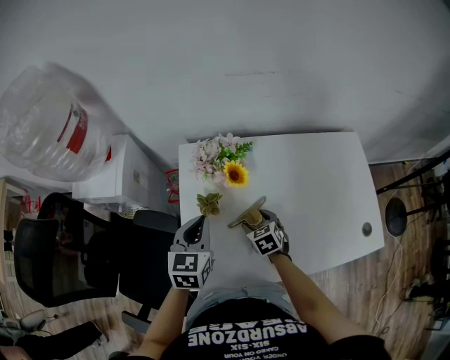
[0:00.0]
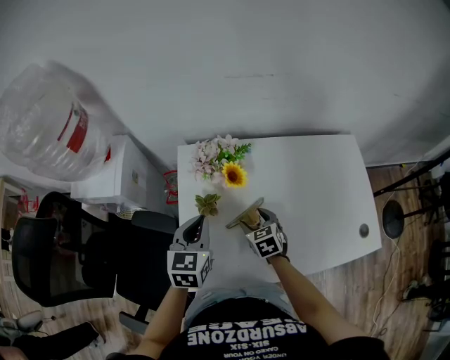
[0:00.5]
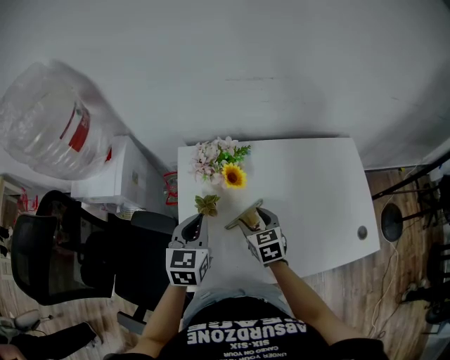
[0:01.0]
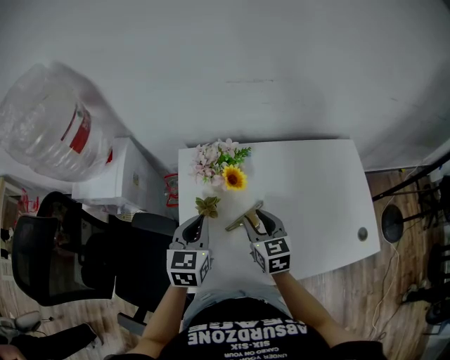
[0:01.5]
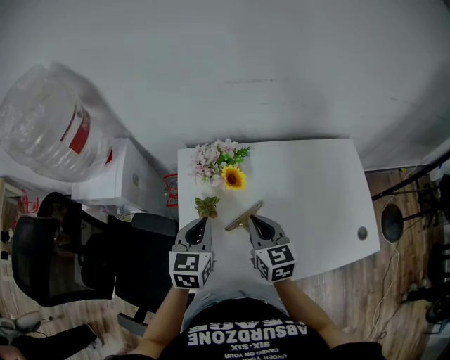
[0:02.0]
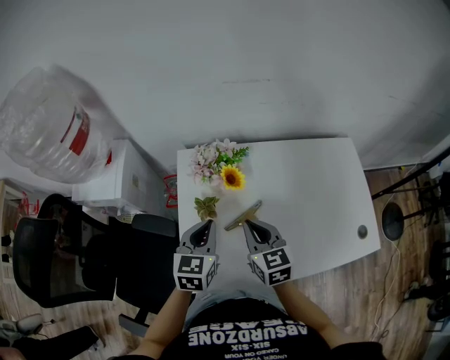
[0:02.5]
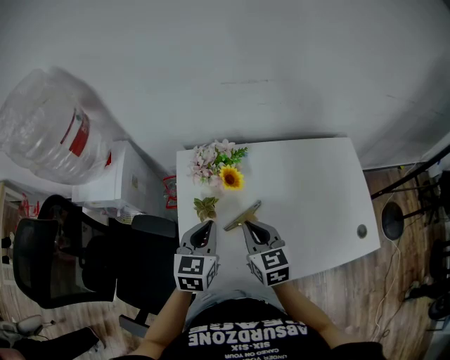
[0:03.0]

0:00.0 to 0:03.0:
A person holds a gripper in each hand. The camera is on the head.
0:00.0 to 0:01.5: The right gripper goes roughly 15 cm upward, rotates about 30 degrees, and closes its fingers.
0:01.5 to 0:03.0: The right gripper closes.

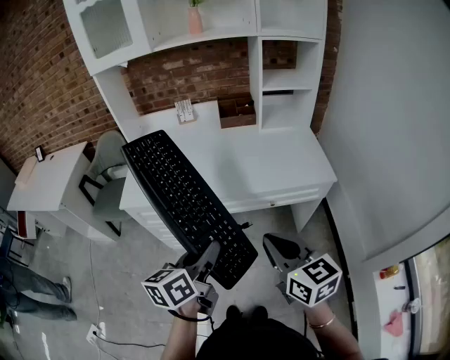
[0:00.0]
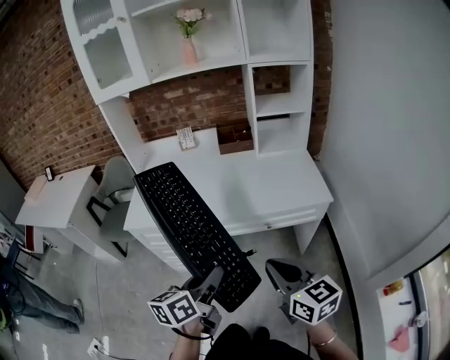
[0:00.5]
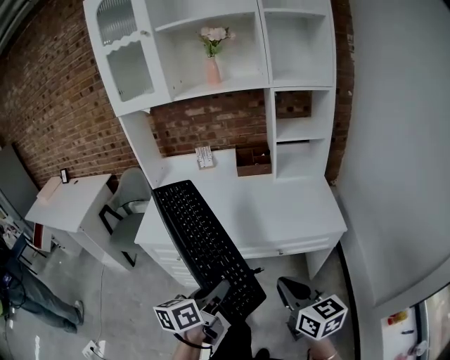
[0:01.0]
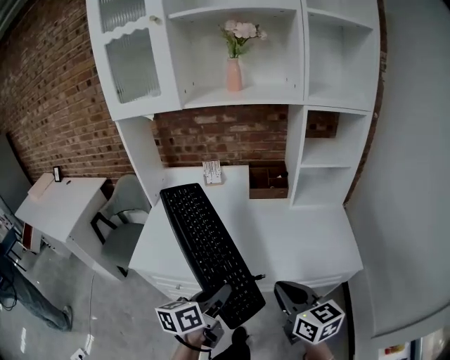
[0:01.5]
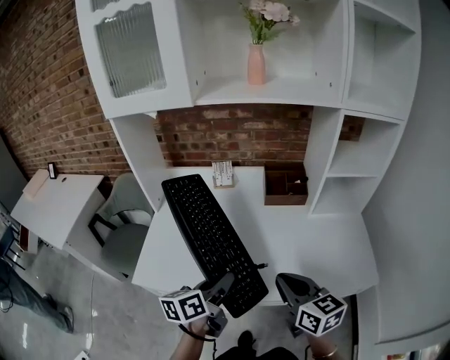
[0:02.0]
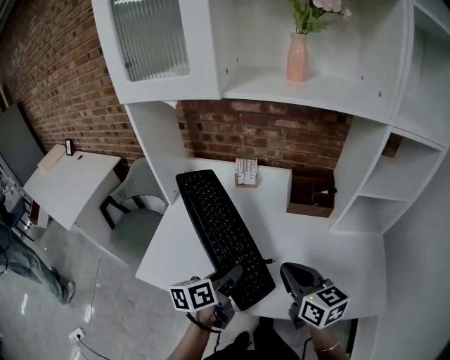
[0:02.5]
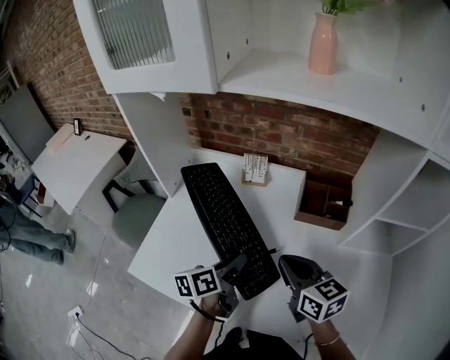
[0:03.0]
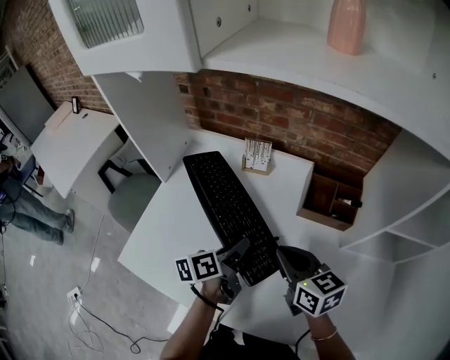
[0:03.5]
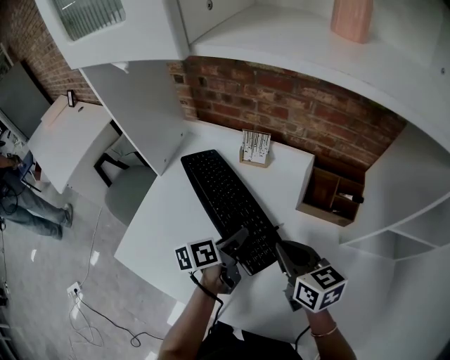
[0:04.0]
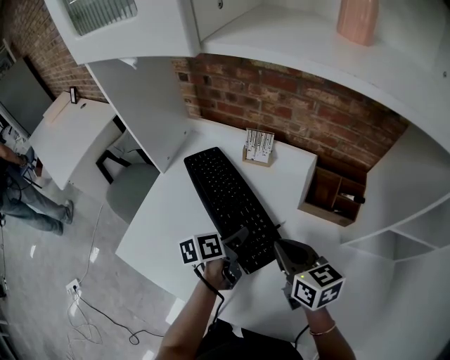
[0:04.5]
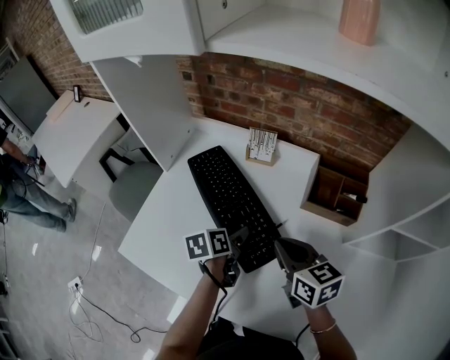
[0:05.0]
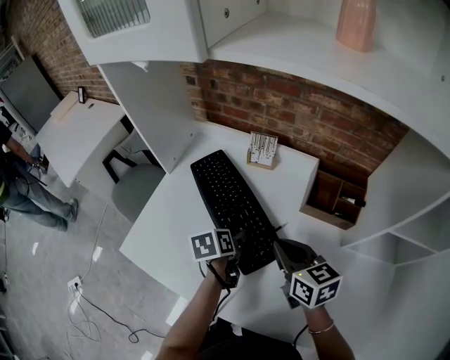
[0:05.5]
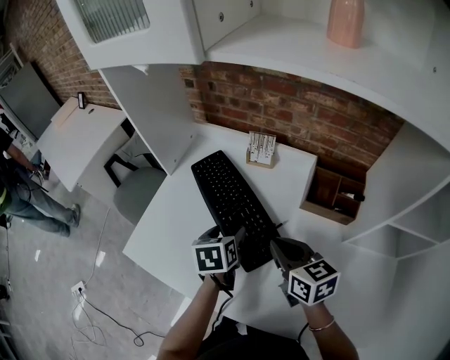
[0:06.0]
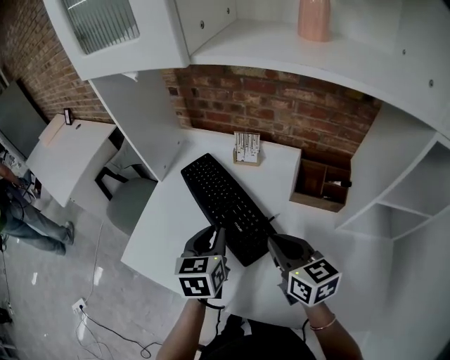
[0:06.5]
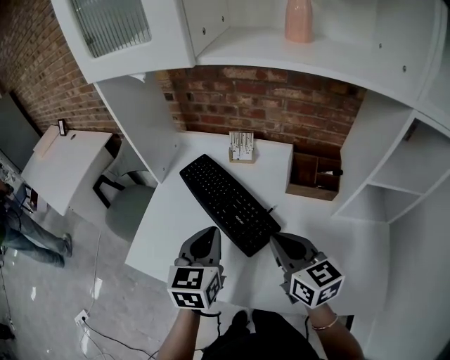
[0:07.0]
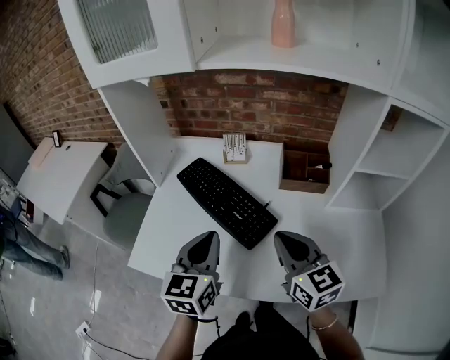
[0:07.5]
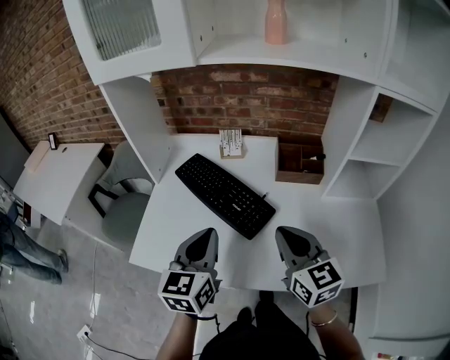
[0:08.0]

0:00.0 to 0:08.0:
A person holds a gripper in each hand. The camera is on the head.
0:00.0 to 0:02.0: Both grippers move forward, some 30 cm.
0:02.0 to 0:04.0: The left gripper moves forward and downward, roughly 25 cm, and rotates some 30 degrees, while the right gripper moves forward, some 25 cm, and changes its angle by some 20 degrees.
0:04.0 to 0:06.0: The left gripper goes approximately 5 cm to the left, changes its angle by about 40 degrees, and opens up.
0:06.0 to 0:08.0: The left gripper travels upward and backward by some 20 cm, angles its fingers upward, by some 30 degrees, and closes up; the right gripper goes roughly 15 cm backward and upward, and rotates some 30 degrees.

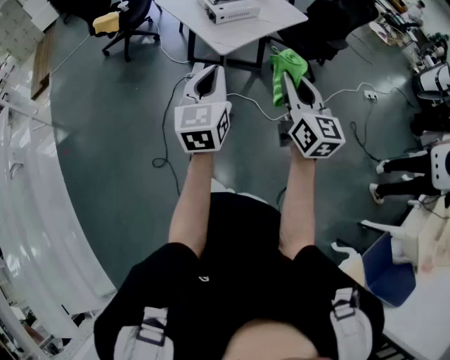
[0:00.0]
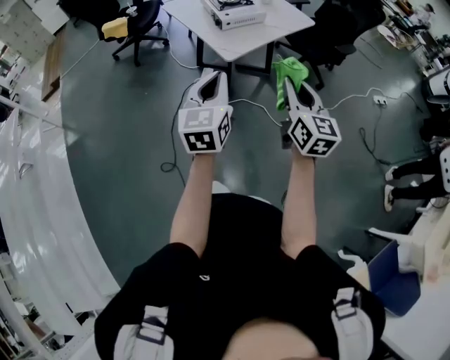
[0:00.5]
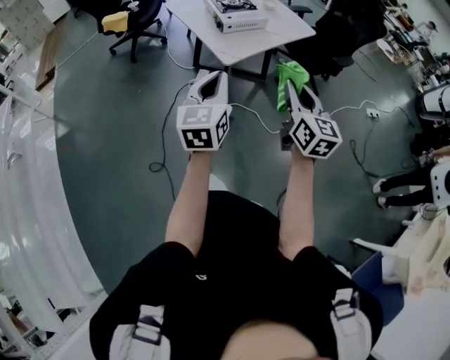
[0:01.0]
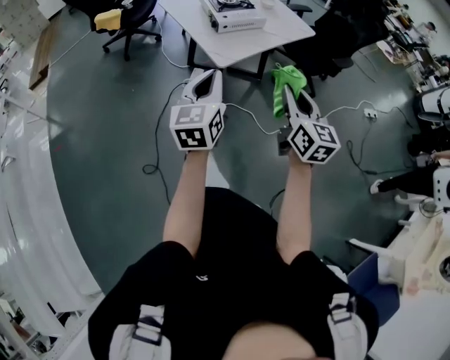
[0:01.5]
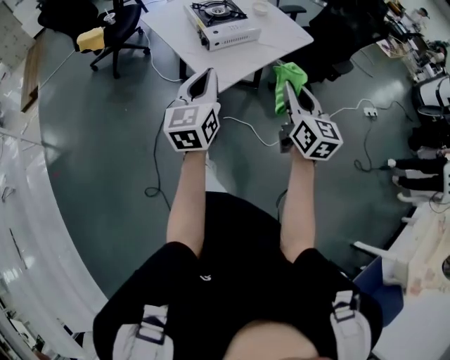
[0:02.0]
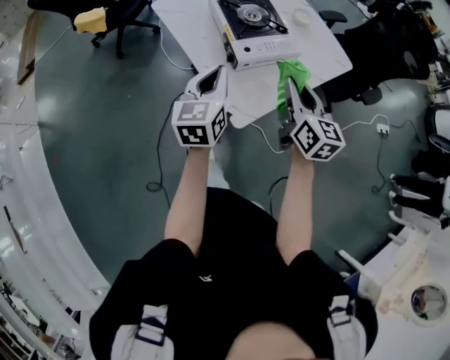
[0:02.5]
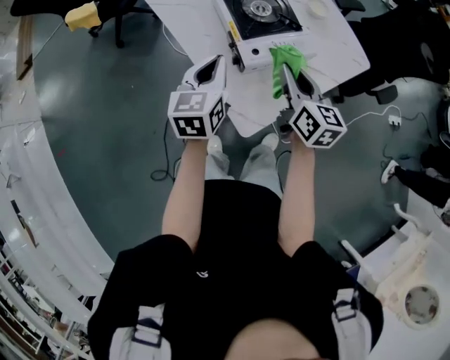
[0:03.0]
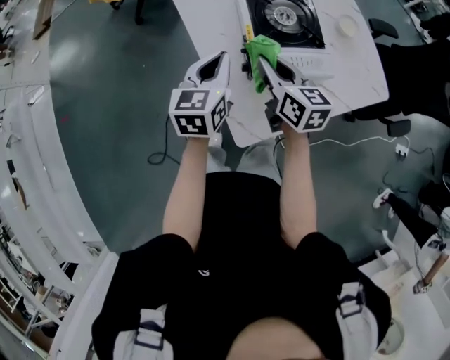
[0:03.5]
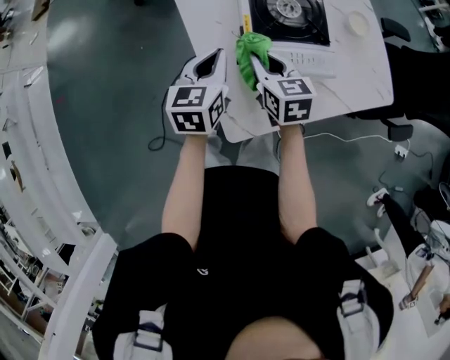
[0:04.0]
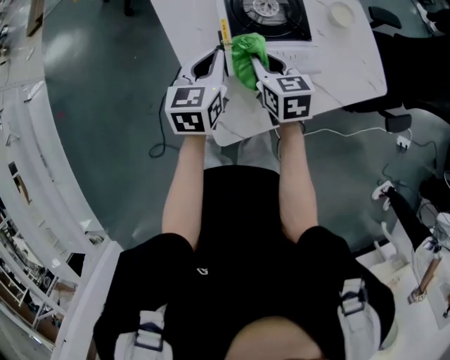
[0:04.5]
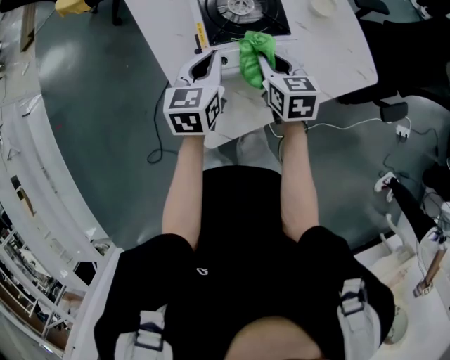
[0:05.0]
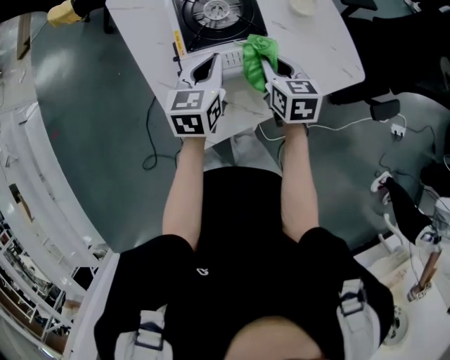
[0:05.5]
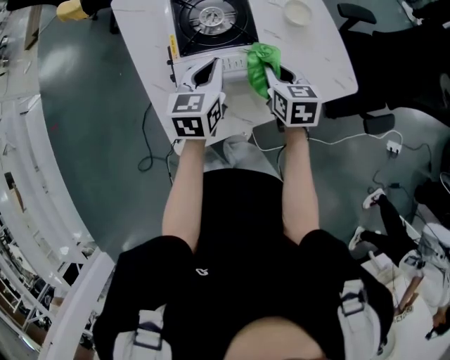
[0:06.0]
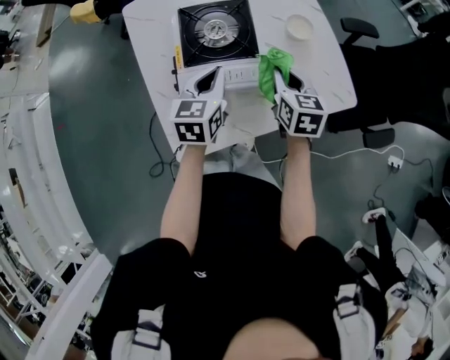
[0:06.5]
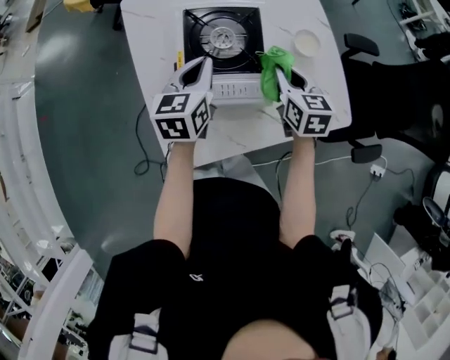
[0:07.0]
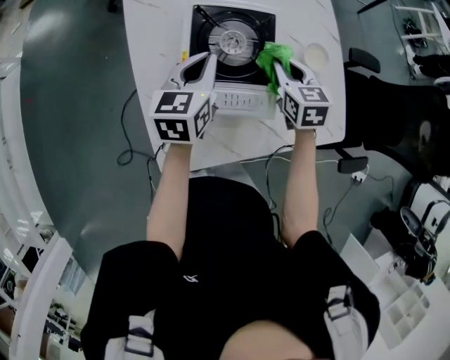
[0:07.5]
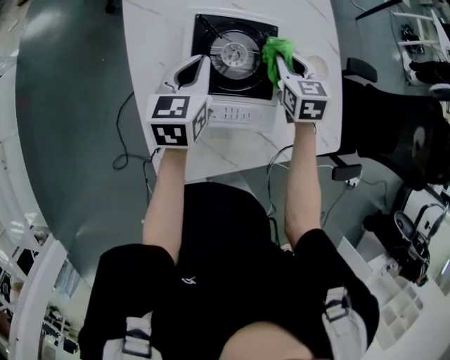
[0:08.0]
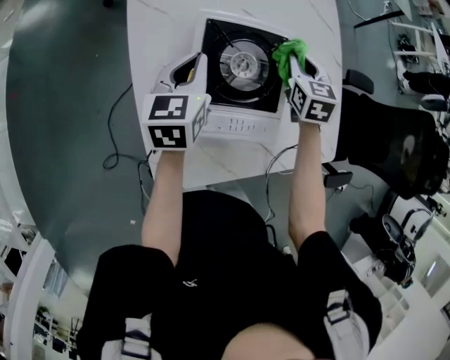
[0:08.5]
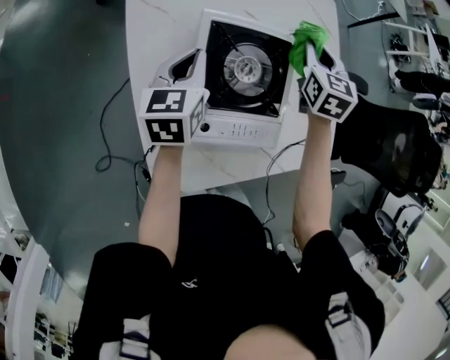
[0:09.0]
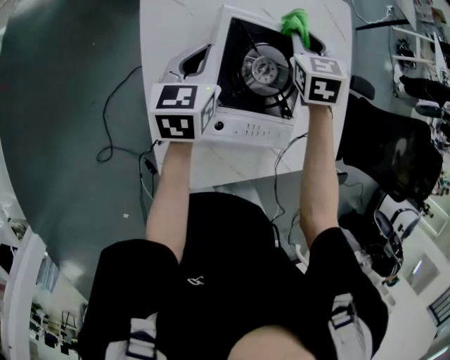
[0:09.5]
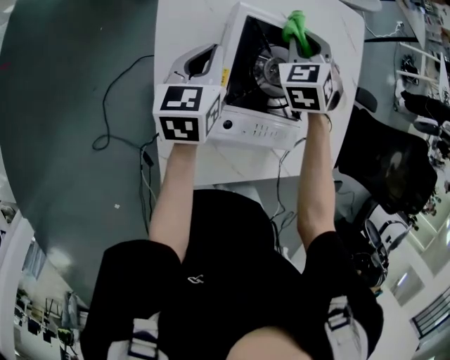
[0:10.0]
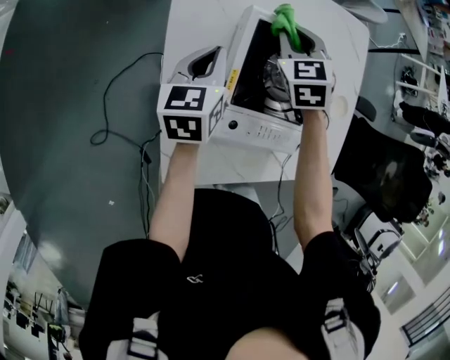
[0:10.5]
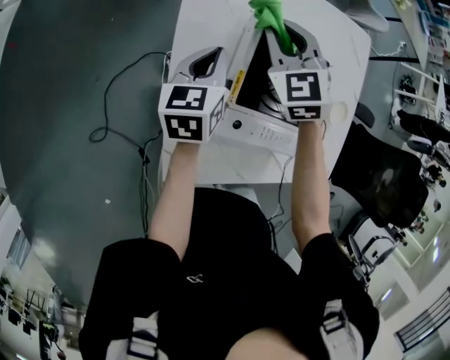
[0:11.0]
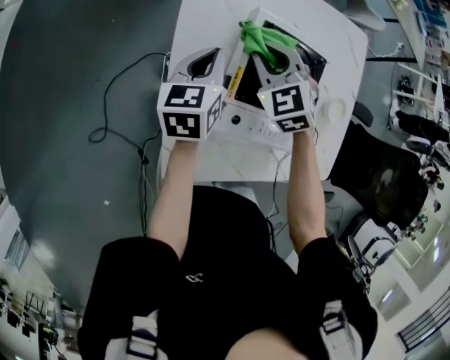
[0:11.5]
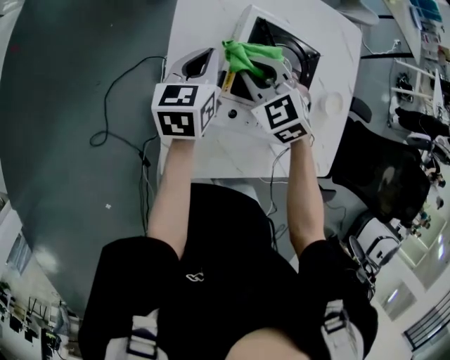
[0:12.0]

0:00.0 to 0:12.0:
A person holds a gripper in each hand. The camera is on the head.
0:00.0 to 0:02.0: Both grippers move forward, roughly 25 cm.
0:02.0 to 0:04.0: The right gripper shifts by about 50 cm, and turns by approximately 50 degrees, while the left gripper moves roughly 40 cm, and rotates some 30 degrees.
0:04.0 to 0:06.0: Both grippers travel together to the right, roughly 20 cm.
0:06.0 to 0:08.0: The left gripper travels forward and to the left by some 15 cm; the right gripper heads forward, covering roughly 20 cm.
0:08.0 to 0:10.0: The right gripper is displaced to the left and forward by some 15 cm, and changes its angle by roughly 40 degrees. The left gripper is displaced to the left and downward by about 10 cm.
0:10.0 to 0:12.0: The right gripper moves about 20 cm, and swivels approximately 40 degrees.

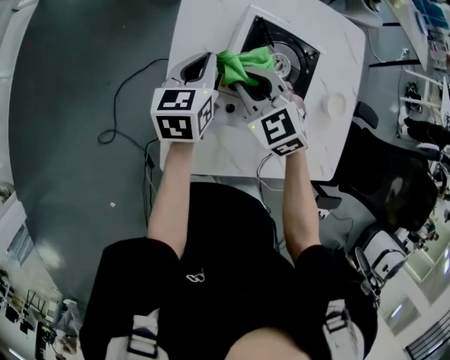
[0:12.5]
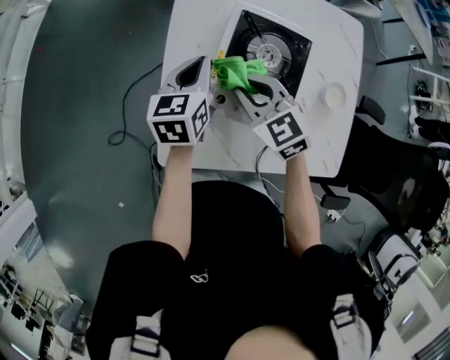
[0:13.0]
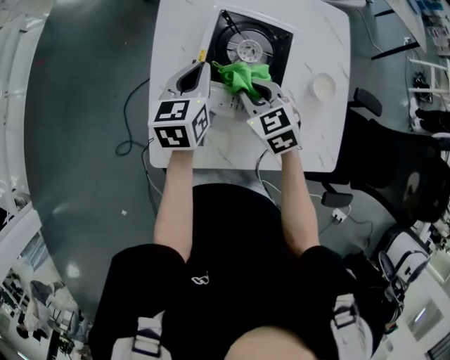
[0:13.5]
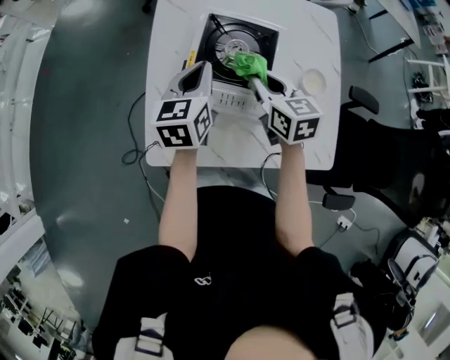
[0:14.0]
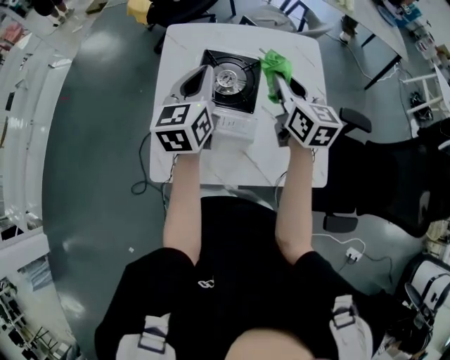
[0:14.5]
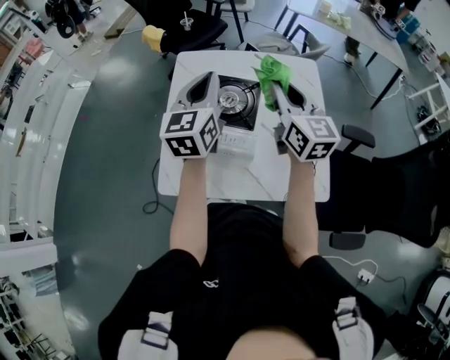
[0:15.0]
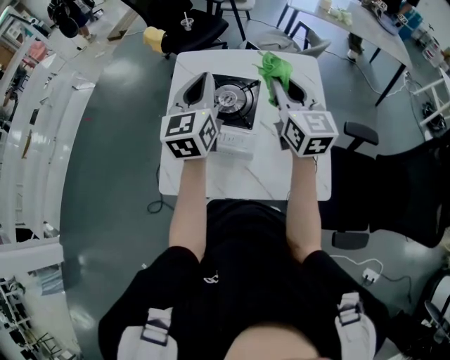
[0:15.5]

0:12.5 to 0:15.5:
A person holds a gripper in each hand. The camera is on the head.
0:12.5 to 0:14.0: The left gripper shifts about 15 cm to the right, backward and upward. Meanwhile the right gripper heads to the right, covering some 15 cm, and twists some 40 degrees clockwise, seen from behind.
0:14.0 to 0:15.5: The right gripper is displaced upward and to the right by roughly 20 cm, and swivels about 30 degrees. The left gripper travels upward by about 15 cm, and changes its angle by some 20 degrees.
